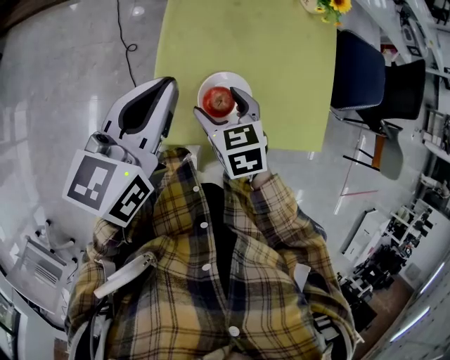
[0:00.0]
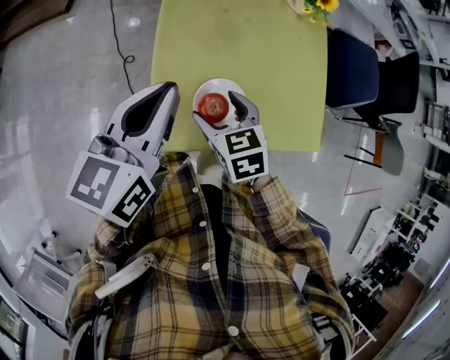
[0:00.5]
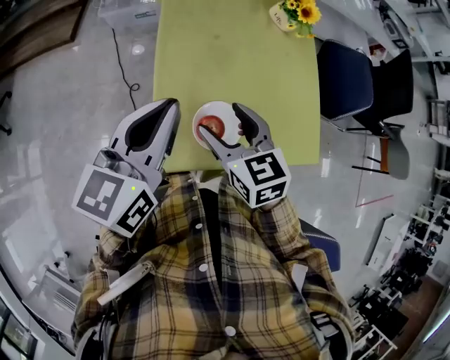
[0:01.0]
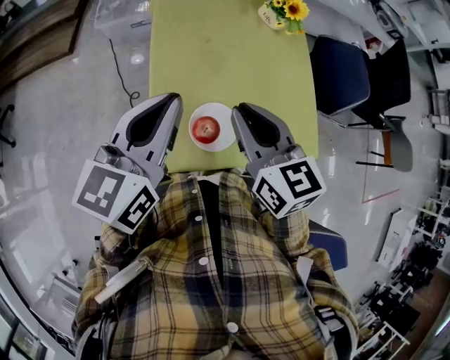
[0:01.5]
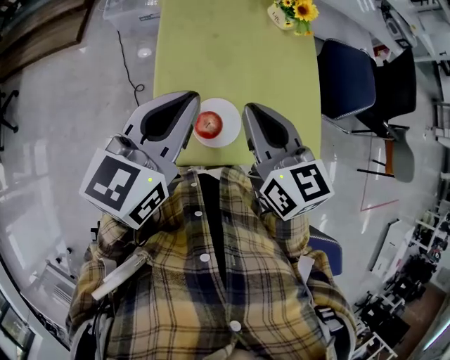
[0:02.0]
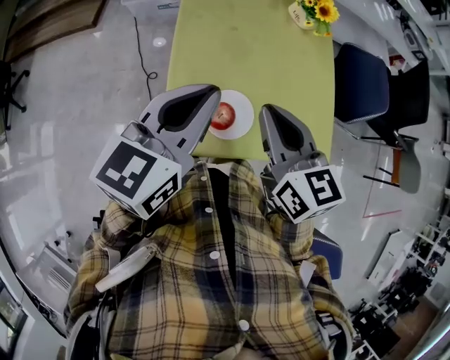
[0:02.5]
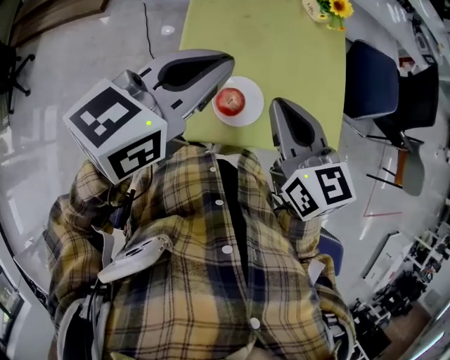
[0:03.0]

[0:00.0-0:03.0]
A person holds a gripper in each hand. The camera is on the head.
0:00.0 to 0:01.5: The left gripper is displaced upward by some 10 cm; the right gripper moves upward, about 20 cm, tilts its fingers some 30 degrees upward, and closes up.
0:01.5 to 0:03.0: The grippers make only small movements.

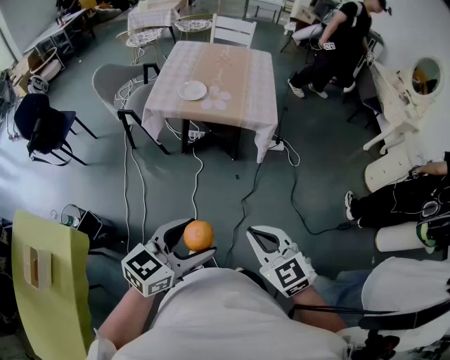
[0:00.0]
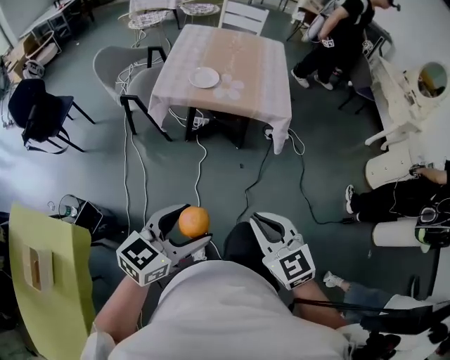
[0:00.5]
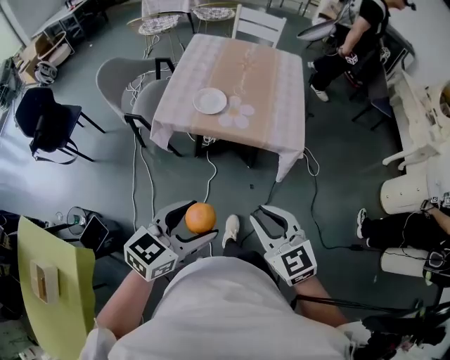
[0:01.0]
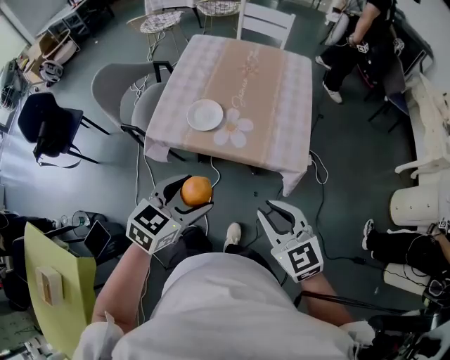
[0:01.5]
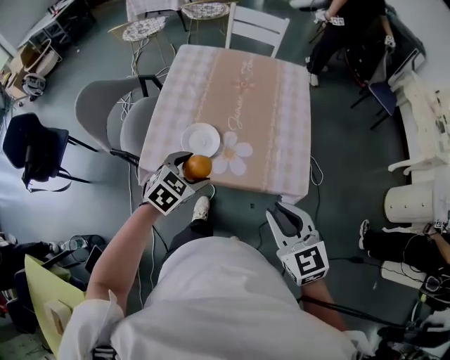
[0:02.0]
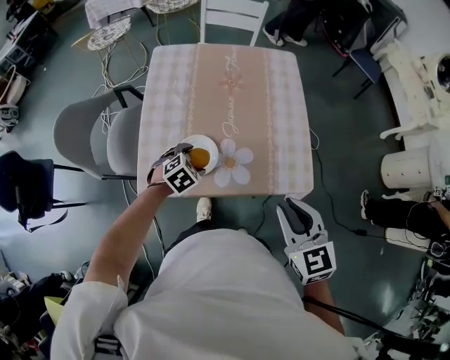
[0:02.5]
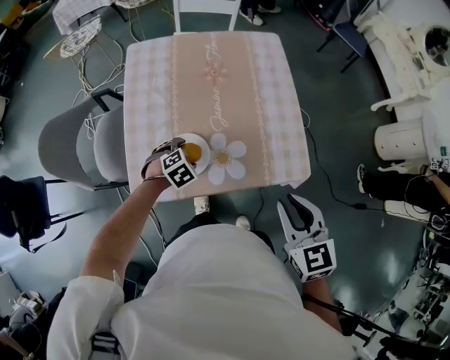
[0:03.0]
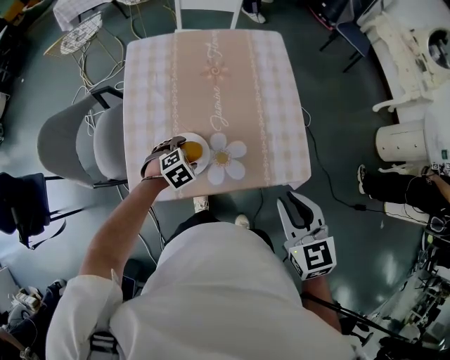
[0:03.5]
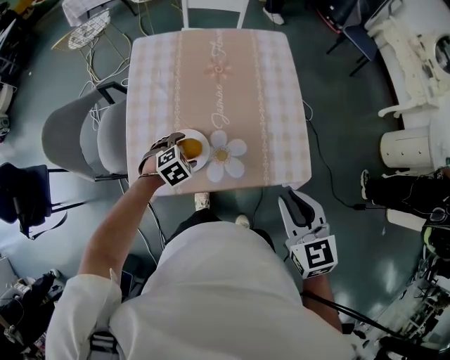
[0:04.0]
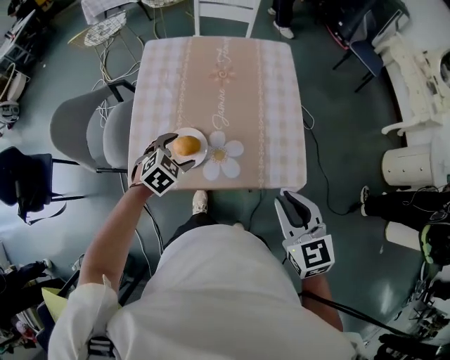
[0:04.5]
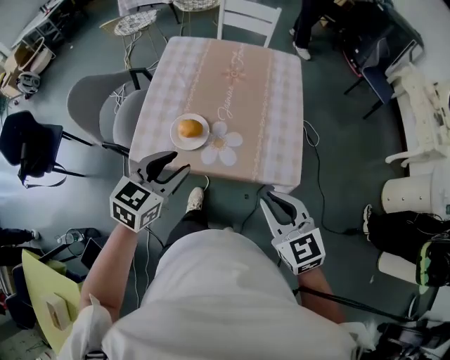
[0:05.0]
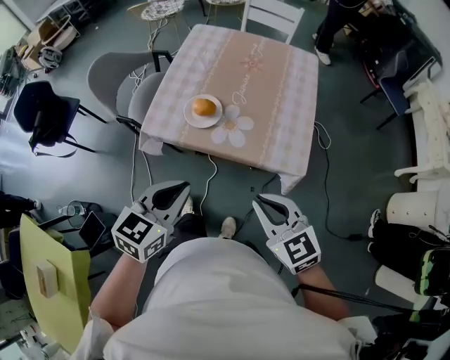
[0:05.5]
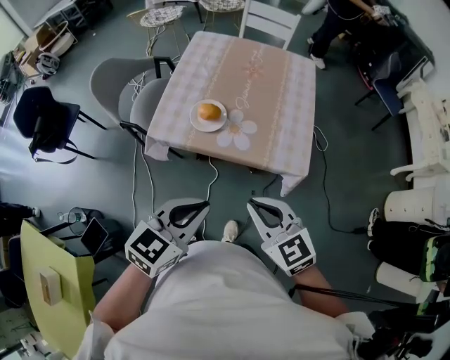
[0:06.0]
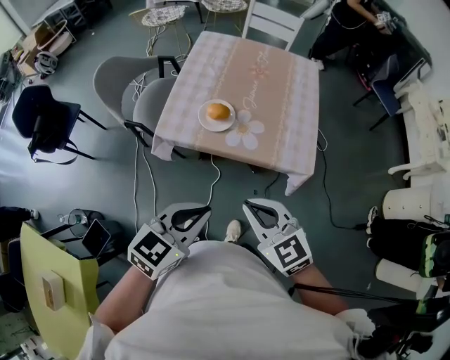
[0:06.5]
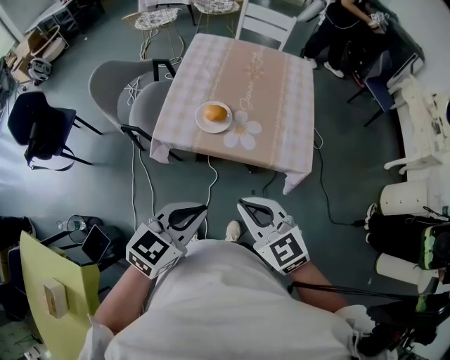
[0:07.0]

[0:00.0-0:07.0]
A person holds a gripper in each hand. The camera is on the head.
0:00.0 to 0:02.0: The two grippers travel together, forward, about 50 cm. The left gripper tilts its fingers roughly 30 degrees downward.
0:02.0 to 0:03.5: The right gripper travels forward by roughly 10 cm, and turns by roughly 20 degrees, while the left gripper shifts some 20 cm downward and forward, and rotates approximately 30 degrees.
0:03.5 to 0:05.0: The left gripper heads upward and backward, covering roughly 30 cm, tips its fingers upward by approximately 40 degrees, and closes, while the right gripper goes about 5 cm backward, and changes its angle by about 30 degrees.
0:05.0 to 0:07.0: The left gripper goes approximately 20 cm backward, and closes, while the right gripper moves to the left and backward, roughly 20 cm.

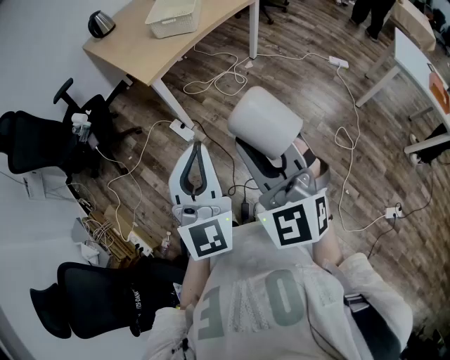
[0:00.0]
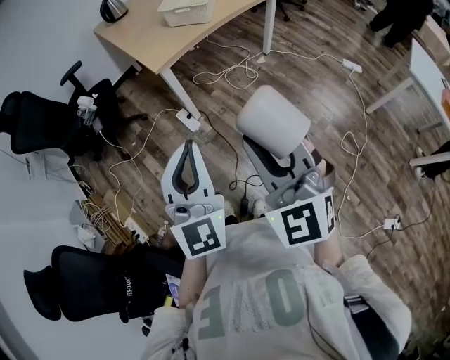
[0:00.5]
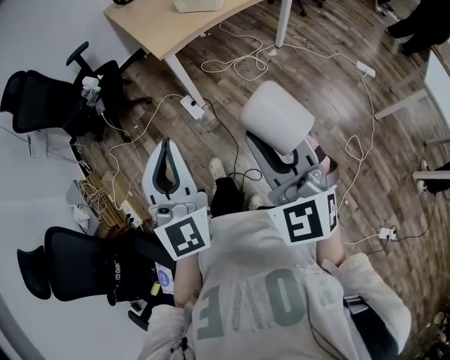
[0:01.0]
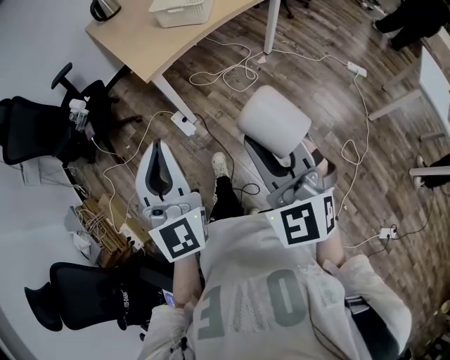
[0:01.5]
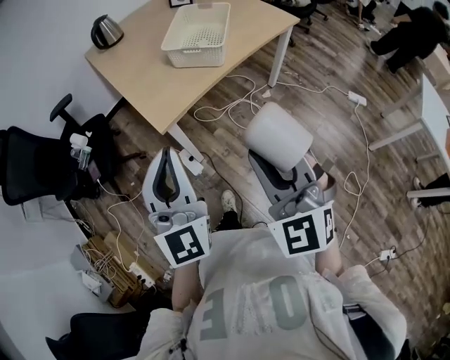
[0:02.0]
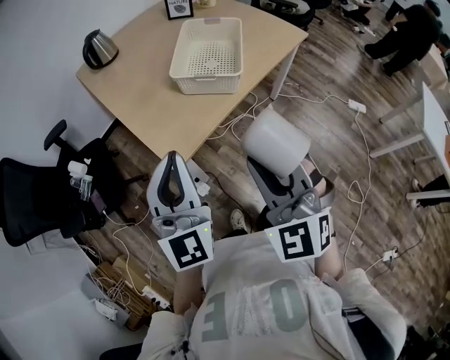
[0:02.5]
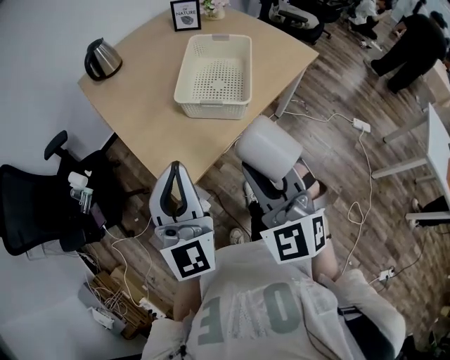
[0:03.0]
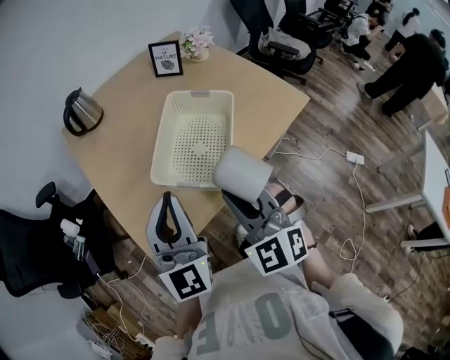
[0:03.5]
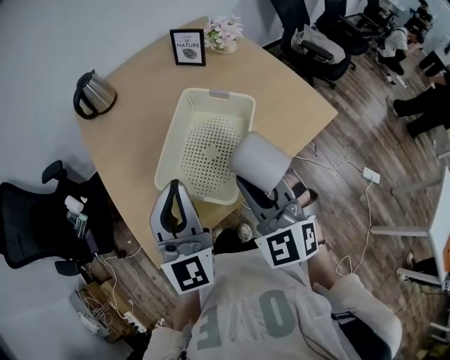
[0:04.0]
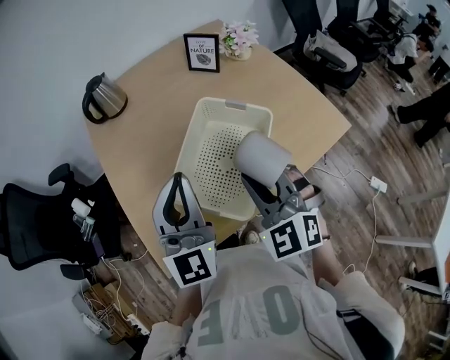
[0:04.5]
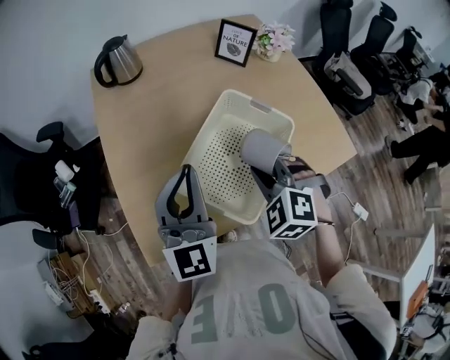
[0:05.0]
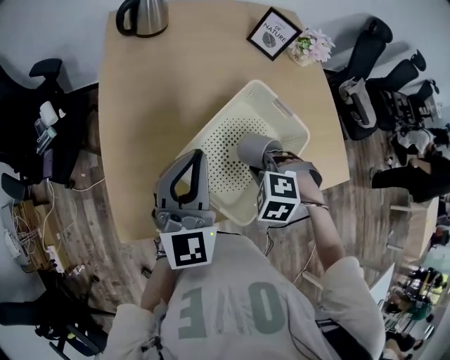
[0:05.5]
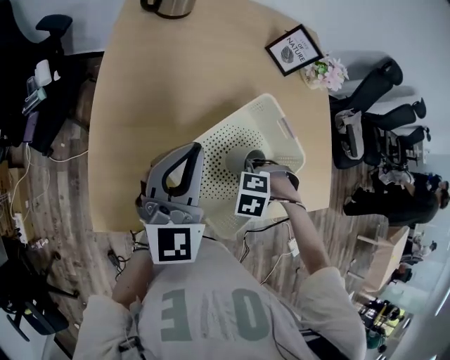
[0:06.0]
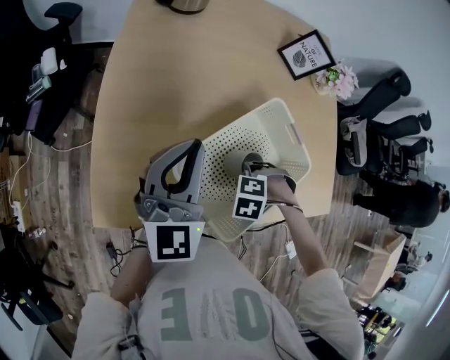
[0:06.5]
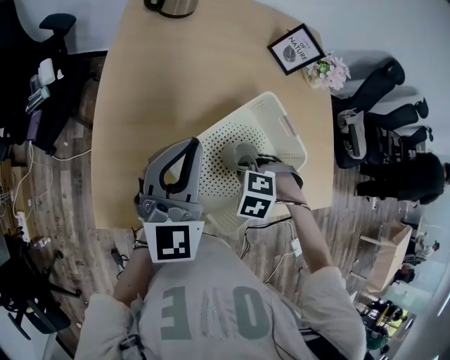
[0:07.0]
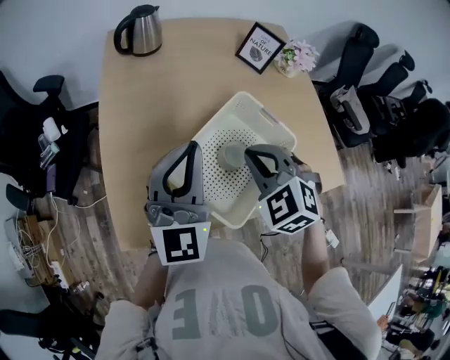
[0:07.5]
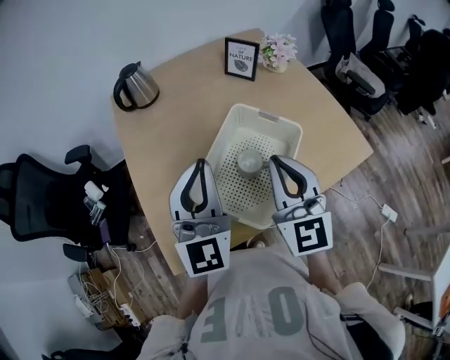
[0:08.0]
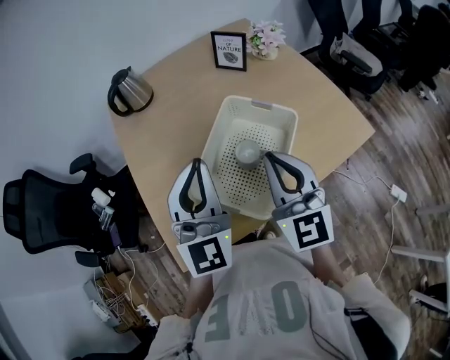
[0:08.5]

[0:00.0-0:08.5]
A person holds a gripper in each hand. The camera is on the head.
0:00.0 to 0:02.0: Both grippers move forward, about 30 cm.
0:02.0 to 0:04.0: Both grippers are carried forward, roughly 50 cm.
0:04.0 to 0:06.5: The left gripper moves roughly 20 cm; the right gripper shifts roughly 30 cm downward, and tips its fingers downward by roughly 70 degrees.
0:06.5 to 0:08.5: The left gripper moves upward, about 10 cm; the right gripper heads upward, covering about 30 cm, and tilts its fingers roughly 80 degrees upward.

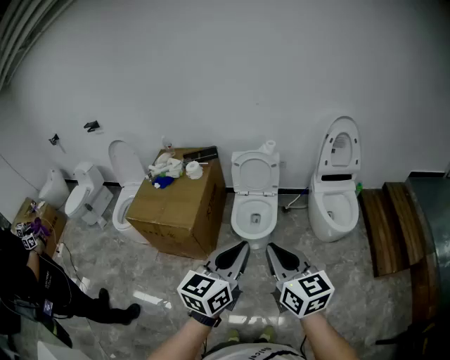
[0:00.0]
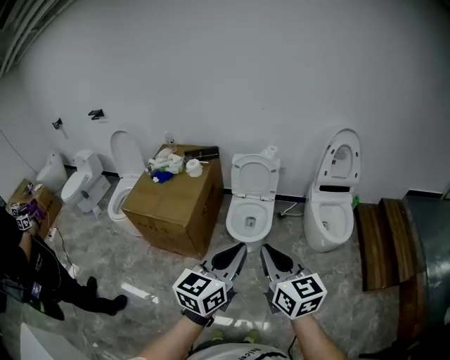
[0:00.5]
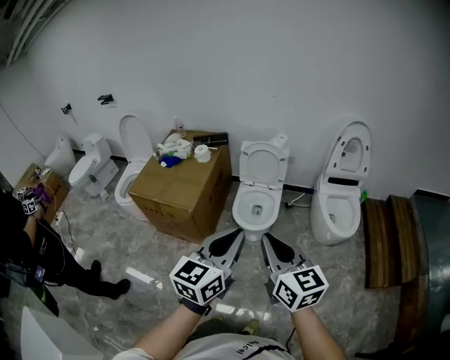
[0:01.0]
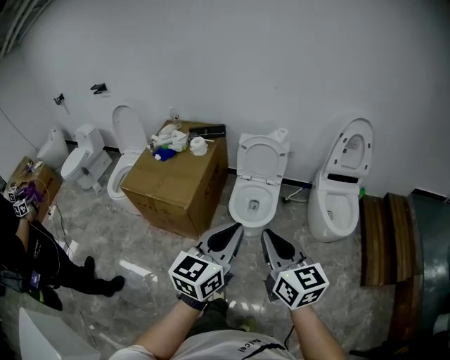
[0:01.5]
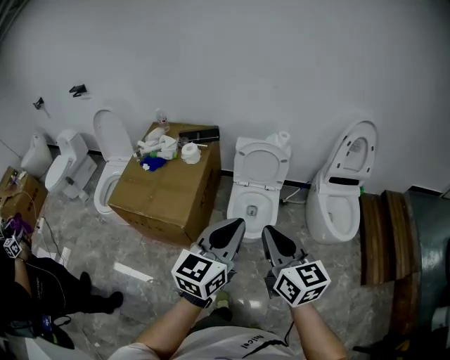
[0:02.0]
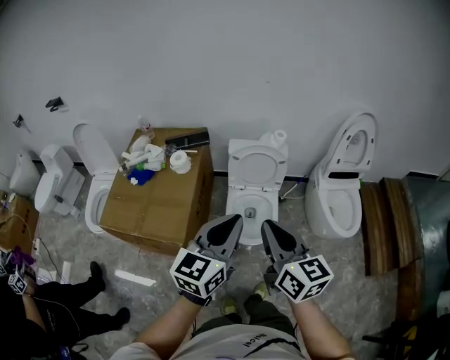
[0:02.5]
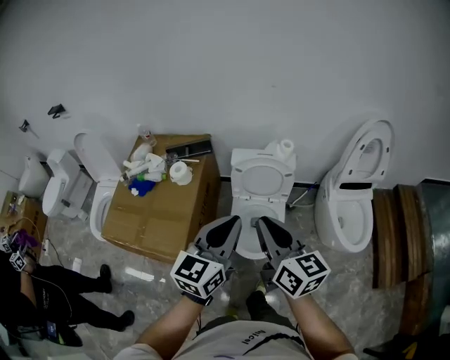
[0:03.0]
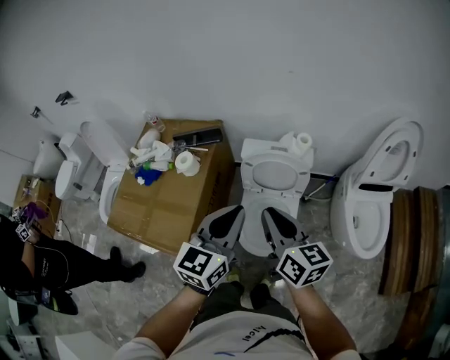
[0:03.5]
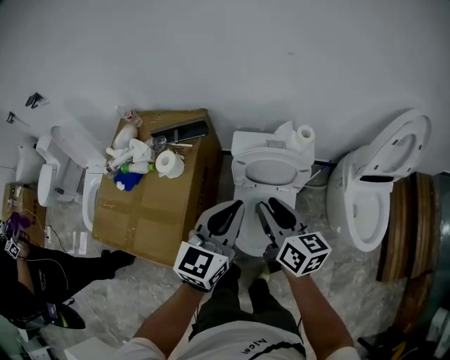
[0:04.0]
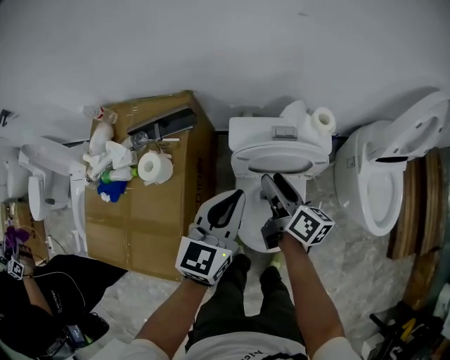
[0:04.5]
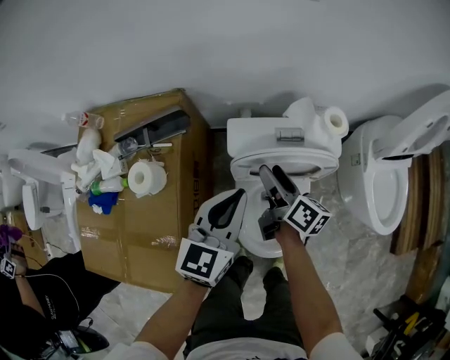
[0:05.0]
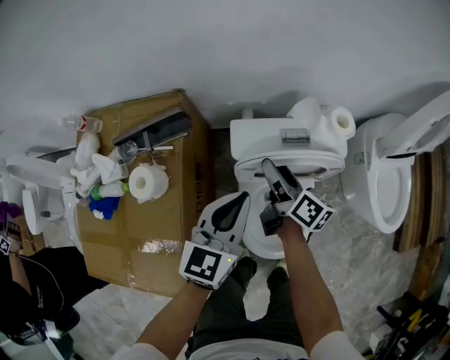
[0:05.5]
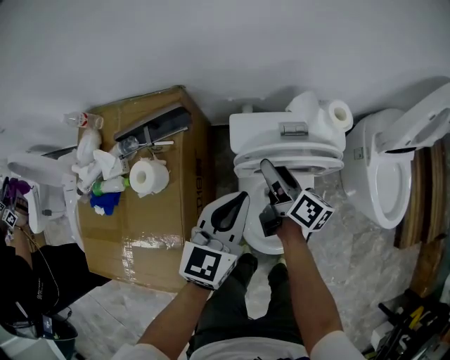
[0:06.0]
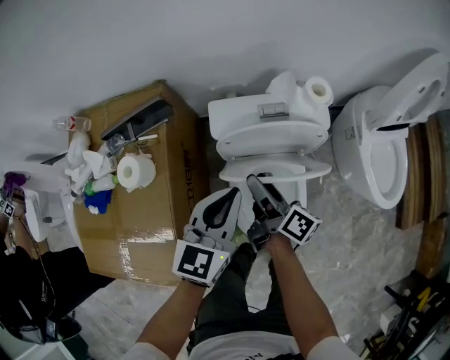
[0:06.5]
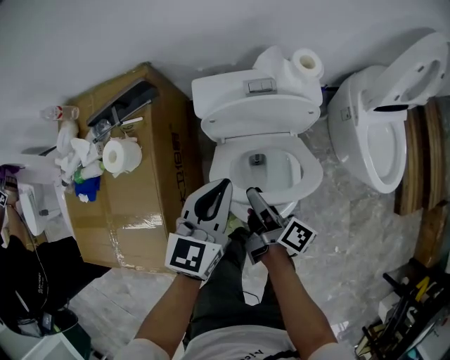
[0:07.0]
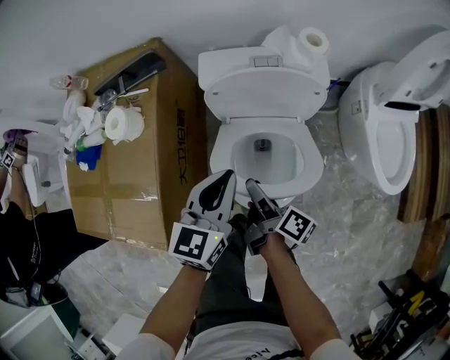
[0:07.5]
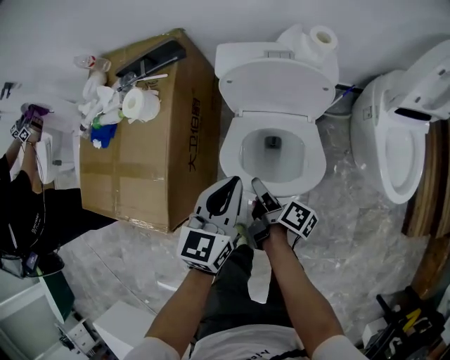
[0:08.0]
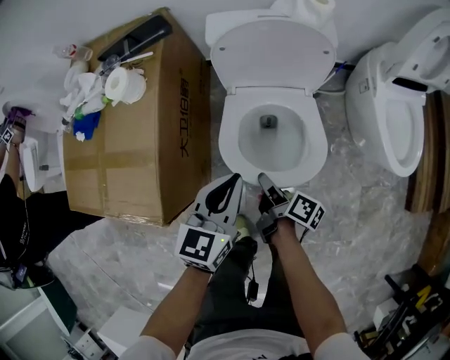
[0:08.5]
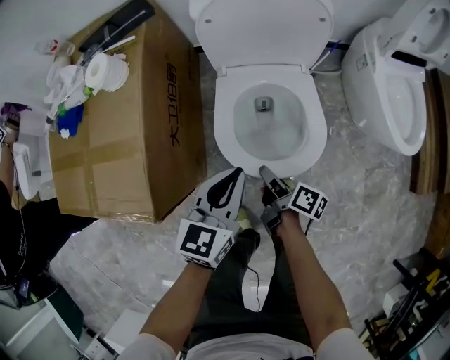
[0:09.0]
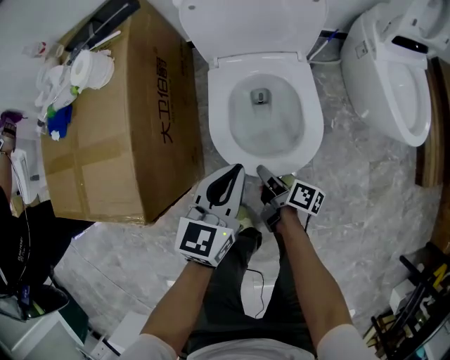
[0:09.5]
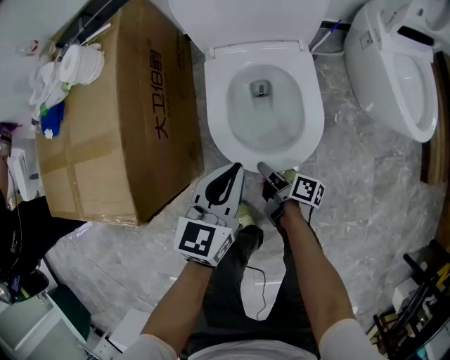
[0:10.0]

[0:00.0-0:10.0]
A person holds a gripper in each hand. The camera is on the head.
0:00.0 to 0:02.0: Both grippers travel together forward and to the left, some 20 cm.
0:02.0 to 0:04.0: Both grippers are carried forward, approximately 40 cm. The right gripper moves downward, approximately 20 cm, changes its angle by some 20 degrees, and opens its fingers.
0:04.0 to 0:06.0: Both grippers move downward and forward, about 25 cm. The right gripper changes its angle by some 30 degrees, and opens its fingers.
0:06.0 to 0:08.0: The right gripper goes approximately 25 cm backward, changes its angle by roughly 30 degrees, and closes. Meanwhile the left gripper heads backward, covering roughly 15 cm.
0:08.0 to 0:10.0: The grippers both shift downward and backward by some 25 cm.
